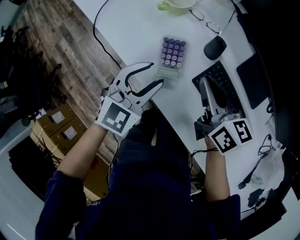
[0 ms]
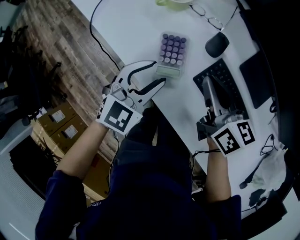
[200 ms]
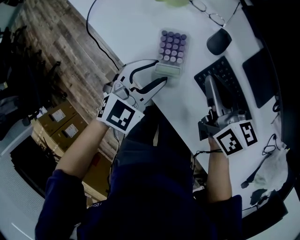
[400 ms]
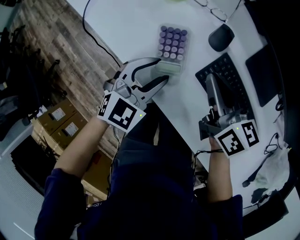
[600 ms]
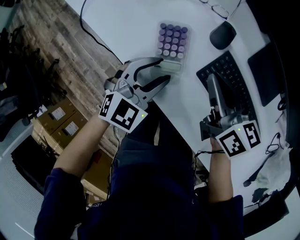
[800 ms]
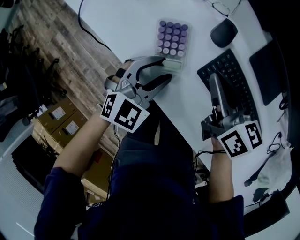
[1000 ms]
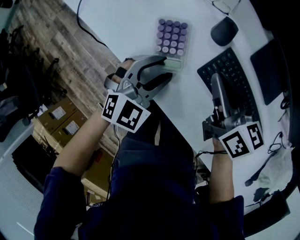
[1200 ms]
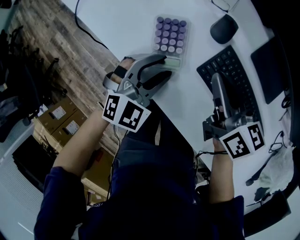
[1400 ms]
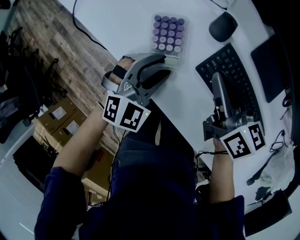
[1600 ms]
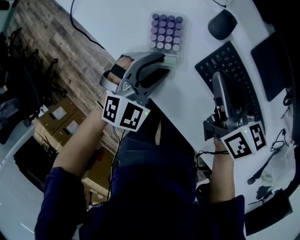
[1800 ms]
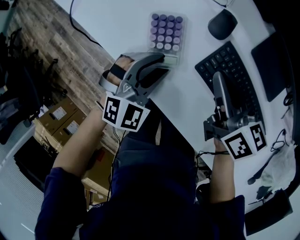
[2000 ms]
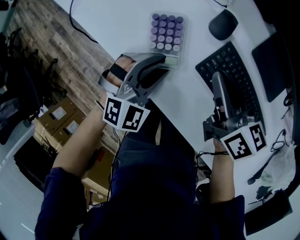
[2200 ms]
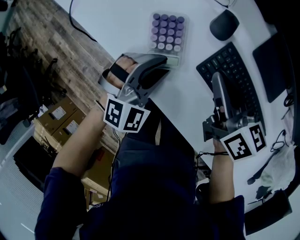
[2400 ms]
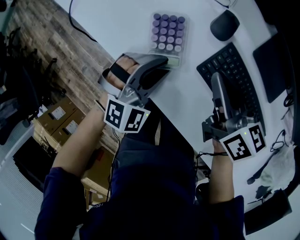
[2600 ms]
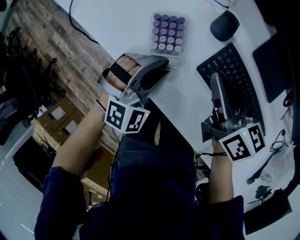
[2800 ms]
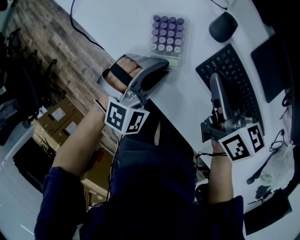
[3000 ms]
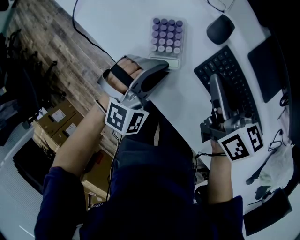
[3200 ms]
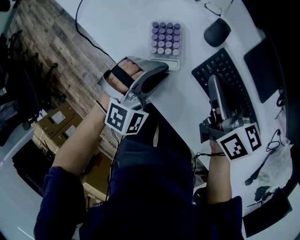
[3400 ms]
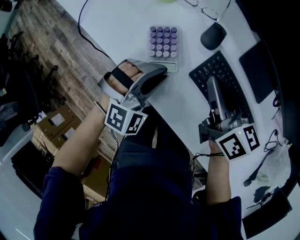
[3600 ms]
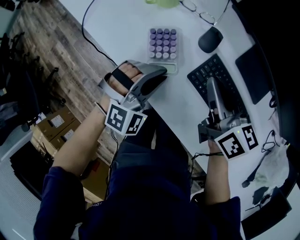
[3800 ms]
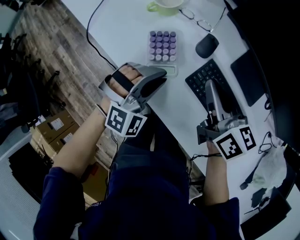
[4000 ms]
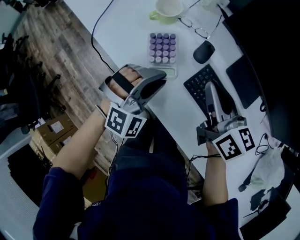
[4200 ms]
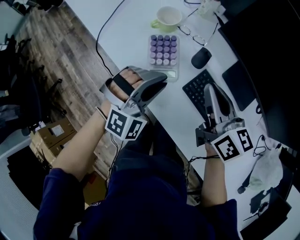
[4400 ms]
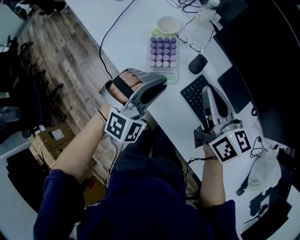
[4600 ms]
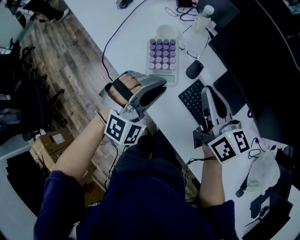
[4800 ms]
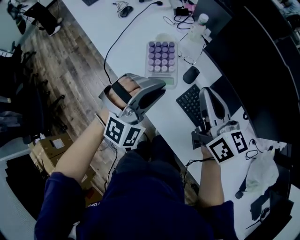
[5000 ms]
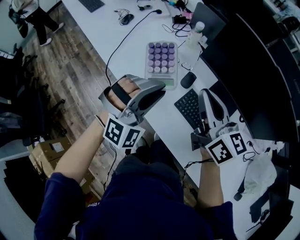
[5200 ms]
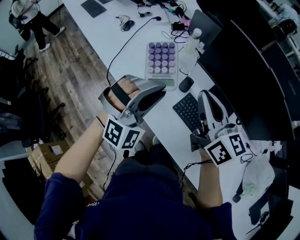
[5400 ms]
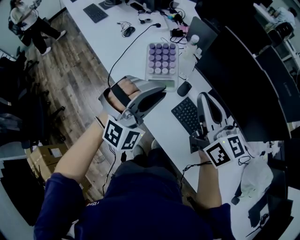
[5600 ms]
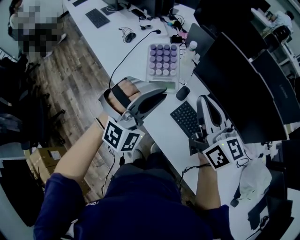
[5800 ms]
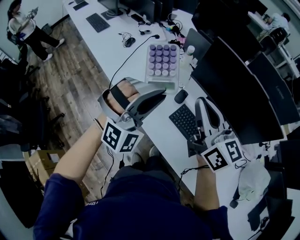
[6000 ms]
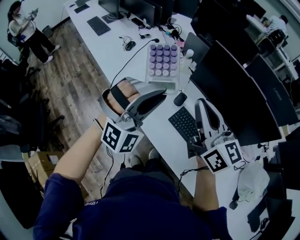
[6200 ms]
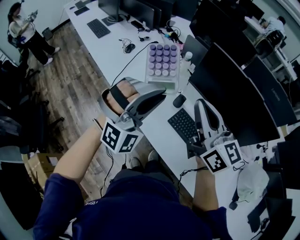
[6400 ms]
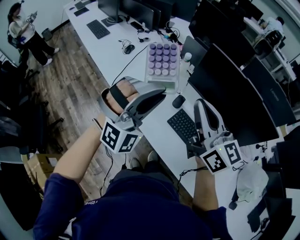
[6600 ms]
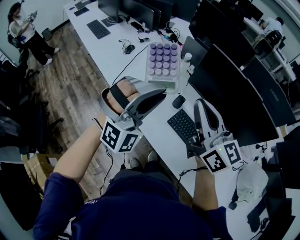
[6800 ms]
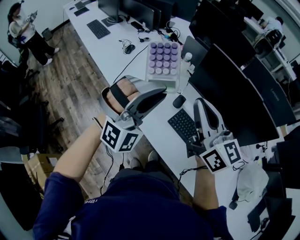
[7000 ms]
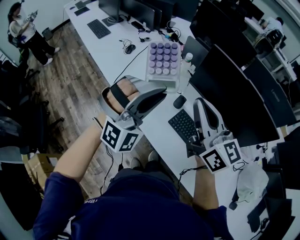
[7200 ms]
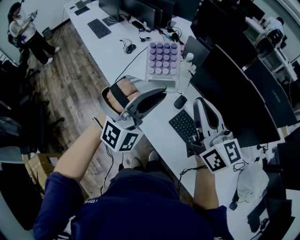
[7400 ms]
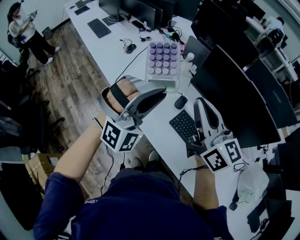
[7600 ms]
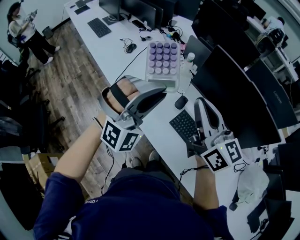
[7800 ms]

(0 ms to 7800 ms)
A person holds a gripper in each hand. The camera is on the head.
0 ms - 1600 ms: The left gripper goes some 10 cm downward, and rotates roughly 20 degrees. Meanwhile the right gripper moves downward, some 5 cm.
1600 ms - 3200 ms: The left gripper swivels some 20 degrees, and closes.
3200 ms - 4600 ms: Both grippers move upward, roughly 15 cm.
4600 ms - 6200 ms: The two grippers go about 20 cm upward. The left gripper rotates approximately 20 degrees, while the right gripper rotates approximately 20 degrees.
6200 ms - 7800 ms: The grippers make only small movements.

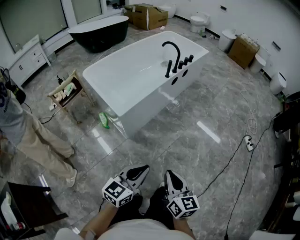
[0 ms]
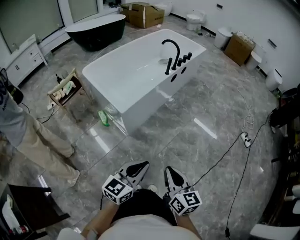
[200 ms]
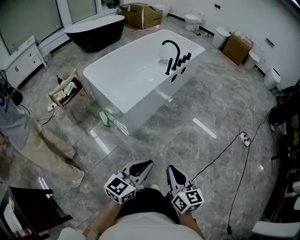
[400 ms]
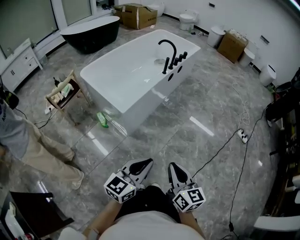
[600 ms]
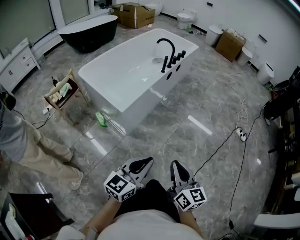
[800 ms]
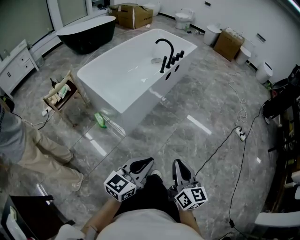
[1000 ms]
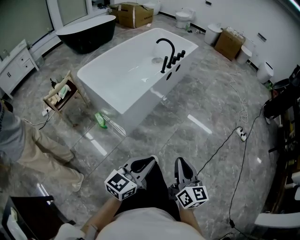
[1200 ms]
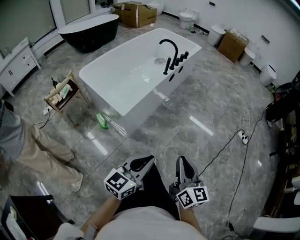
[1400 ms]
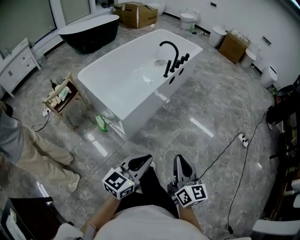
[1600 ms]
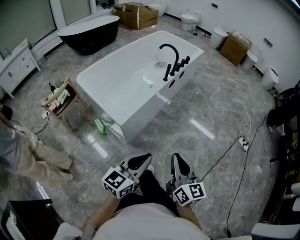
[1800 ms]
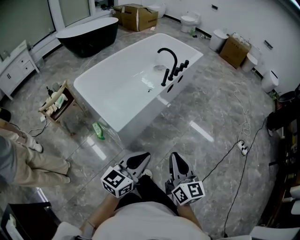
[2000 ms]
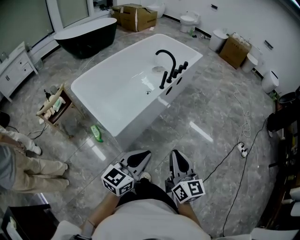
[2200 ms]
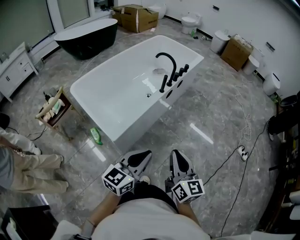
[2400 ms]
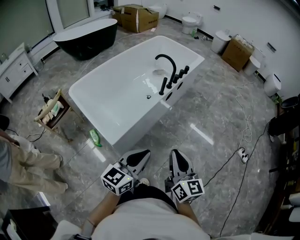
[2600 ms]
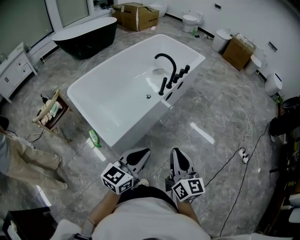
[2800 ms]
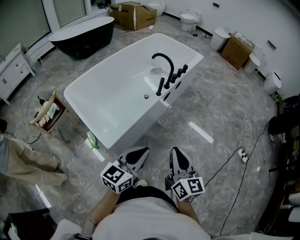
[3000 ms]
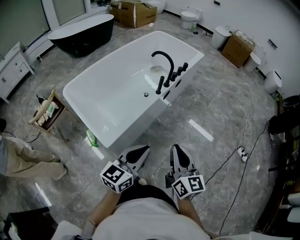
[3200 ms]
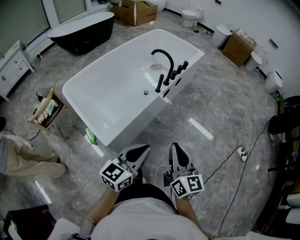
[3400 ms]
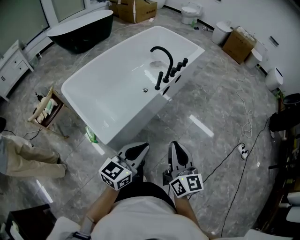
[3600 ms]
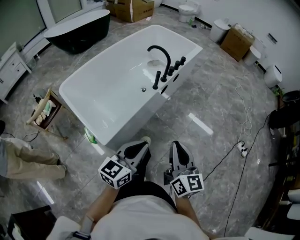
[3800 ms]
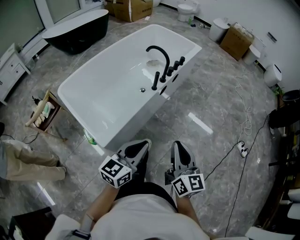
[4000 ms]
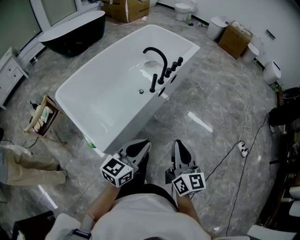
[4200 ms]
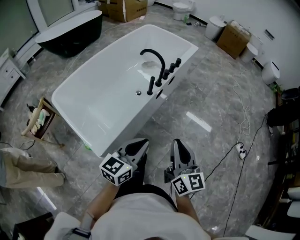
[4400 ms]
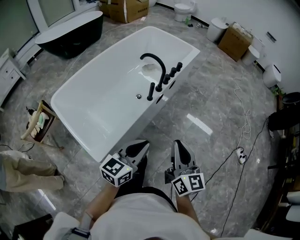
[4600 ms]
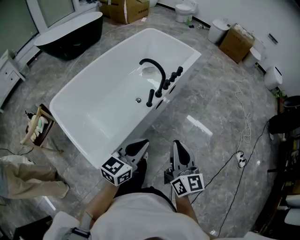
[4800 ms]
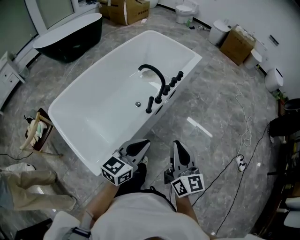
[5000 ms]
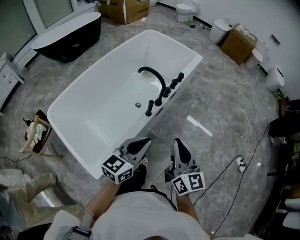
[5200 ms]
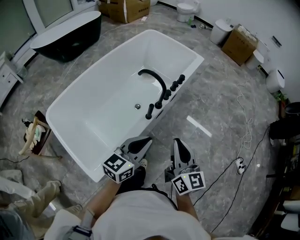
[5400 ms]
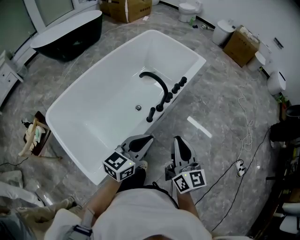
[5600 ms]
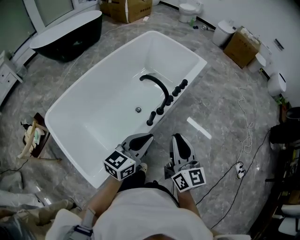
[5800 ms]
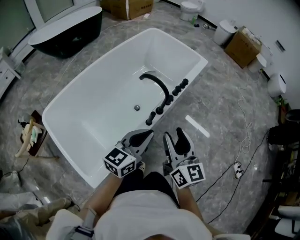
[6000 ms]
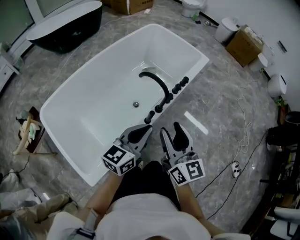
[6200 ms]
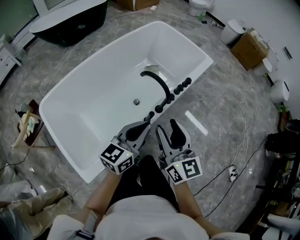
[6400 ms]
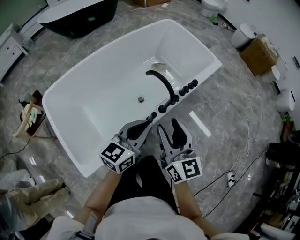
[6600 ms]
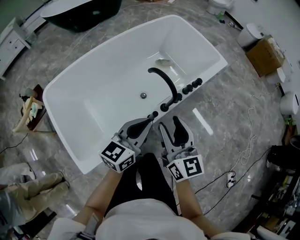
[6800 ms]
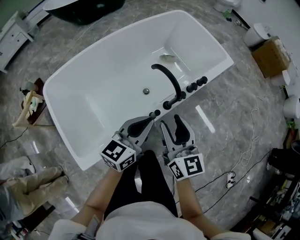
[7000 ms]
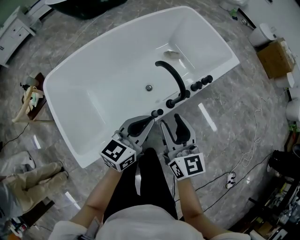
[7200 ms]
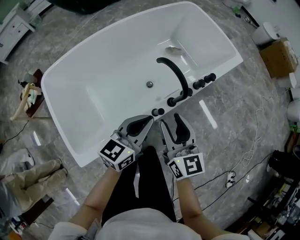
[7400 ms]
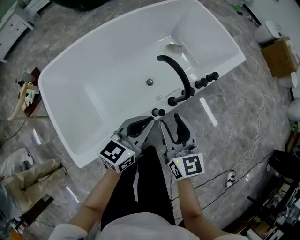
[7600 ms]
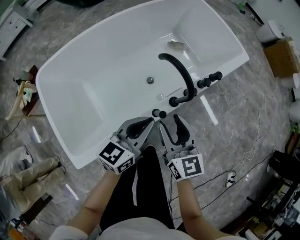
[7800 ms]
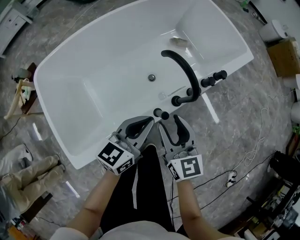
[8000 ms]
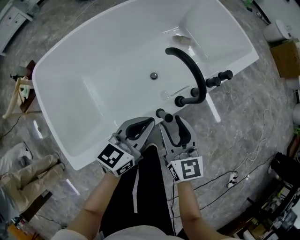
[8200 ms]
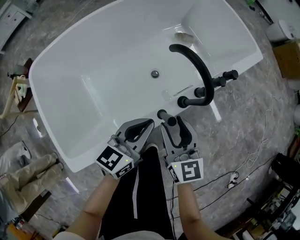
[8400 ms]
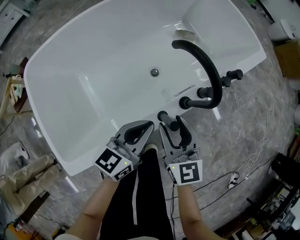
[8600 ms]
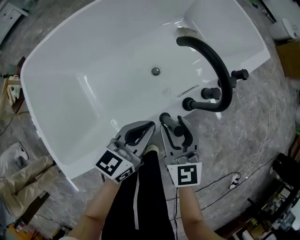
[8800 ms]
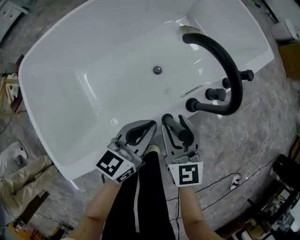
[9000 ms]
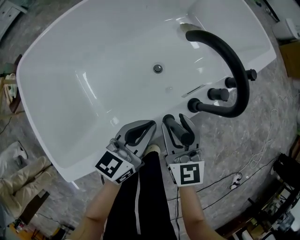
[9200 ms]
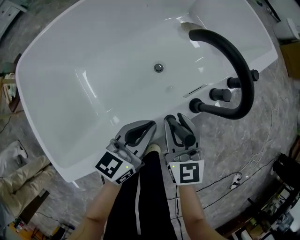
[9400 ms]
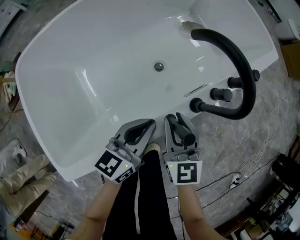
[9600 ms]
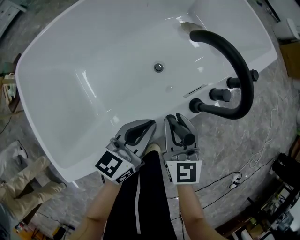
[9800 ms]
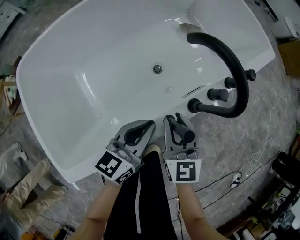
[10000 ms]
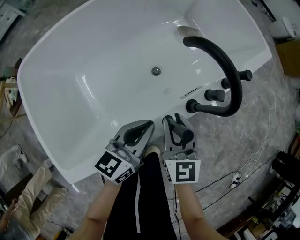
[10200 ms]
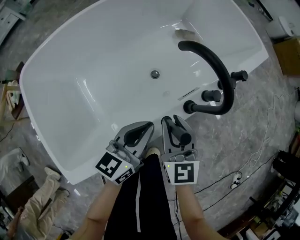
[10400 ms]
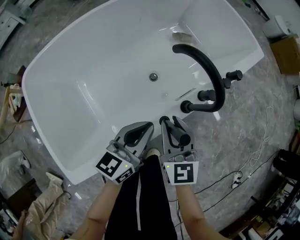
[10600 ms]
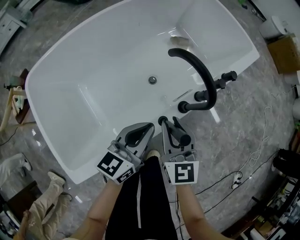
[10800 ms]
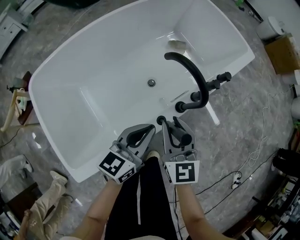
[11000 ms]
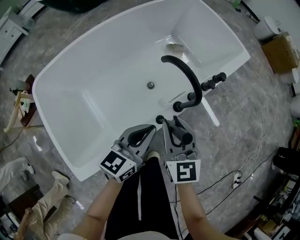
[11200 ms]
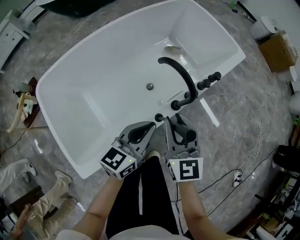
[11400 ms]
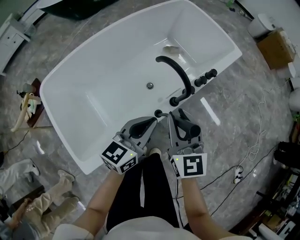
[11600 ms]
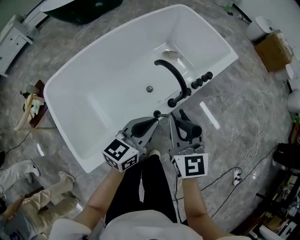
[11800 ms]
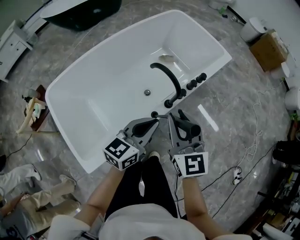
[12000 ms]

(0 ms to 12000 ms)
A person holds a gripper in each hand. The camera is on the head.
0 ms - 1600 ms: The right gripper heads to the left, forward and upward, covering roughly 10 cm. Meanwhile the left gripper shifts roughly 10 cm to the left.
1600 ms - 3000 ms: Both grippers move forward, approximately 25 cm.
3000 ms - 4400 ms: Both grippers move forward, about 10 cm.
4400 ms - 6000 ms: Both grippers move forward, about 30 cm. The right gripper opens up.
6000 ms - 7600 ms: The two grippers go some 15 cm forward and downward. The right gripper changes its angle by roughly 20 degrees.
7600 ms - 9000 ms: Both grippers move downward, roughly 20 cm.
9000 ms - 10400 ms: The right gripper closes its fingers.
10400 ms - 12000 ms: Both grippers move upward, approximately 25 cm.

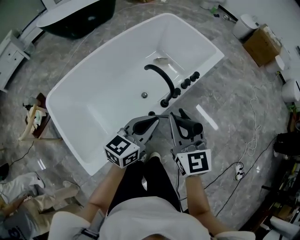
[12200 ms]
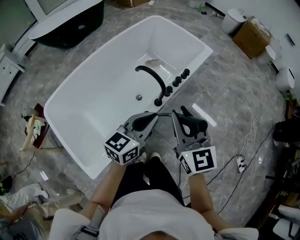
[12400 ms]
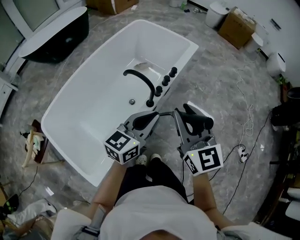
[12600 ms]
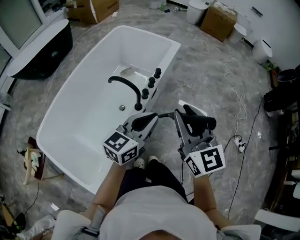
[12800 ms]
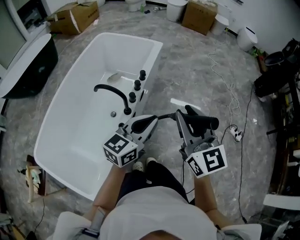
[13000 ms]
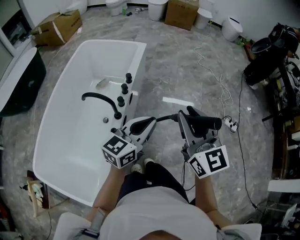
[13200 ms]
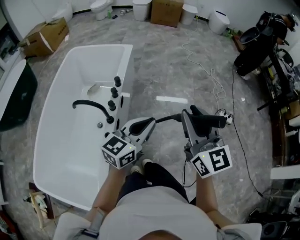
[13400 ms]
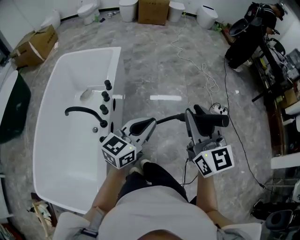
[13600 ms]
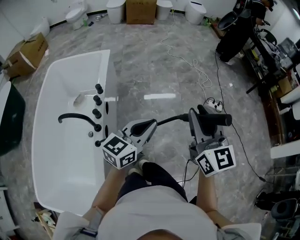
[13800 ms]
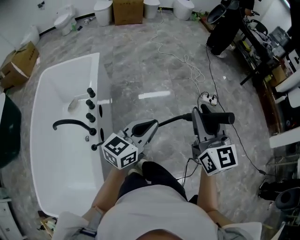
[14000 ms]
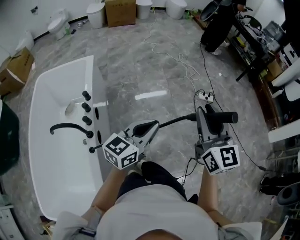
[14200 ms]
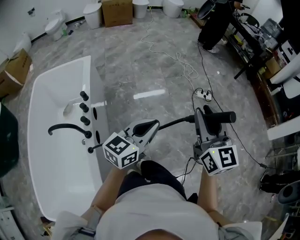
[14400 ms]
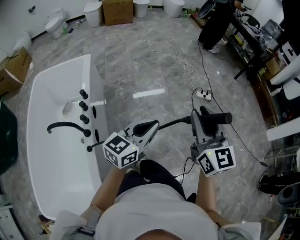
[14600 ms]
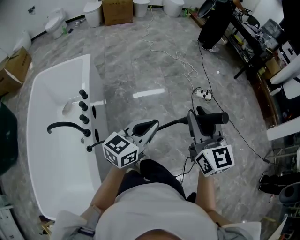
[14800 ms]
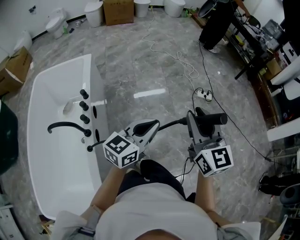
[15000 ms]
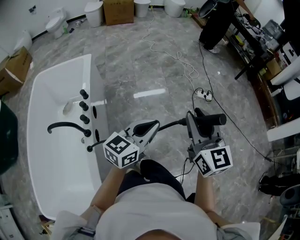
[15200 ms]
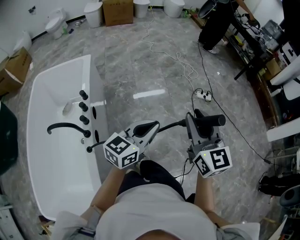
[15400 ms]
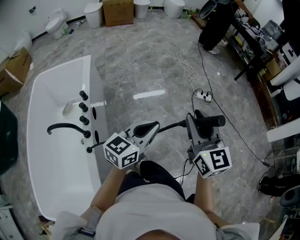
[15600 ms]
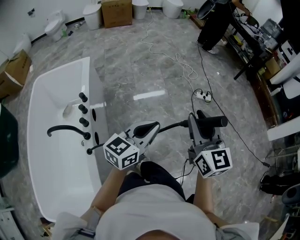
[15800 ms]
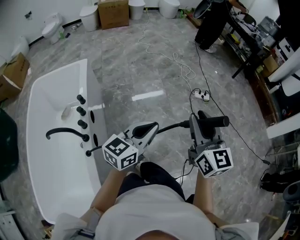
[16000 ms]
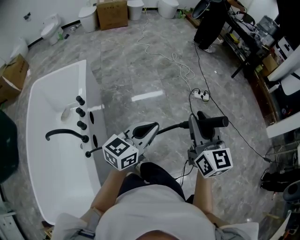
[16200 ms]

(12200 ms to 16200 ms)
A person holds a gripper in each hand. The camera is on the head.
12200 ms - 13600 ms: The right gripper shifts by roughly 35 cm, and rotates some 50 degrees. The left gripper shifts by approximately 30 cm, and swivels approximately 50 degrees.
13600 ms - 14800 ms: Both grippers travel together to the right, some 10 cm.
14800 ms - 16200 ms: The grippers move only a little.
